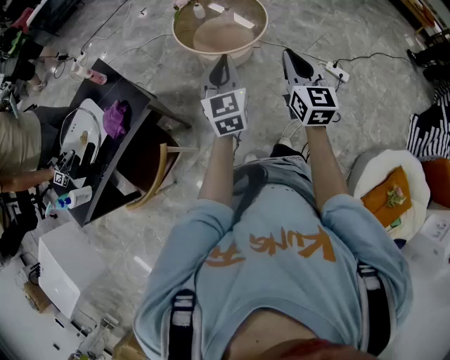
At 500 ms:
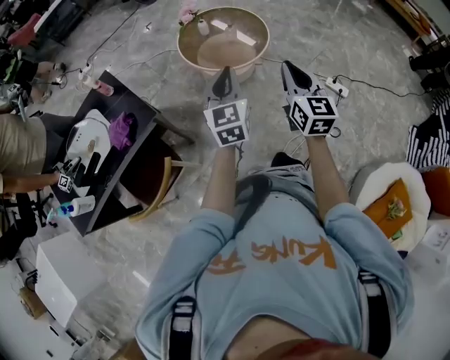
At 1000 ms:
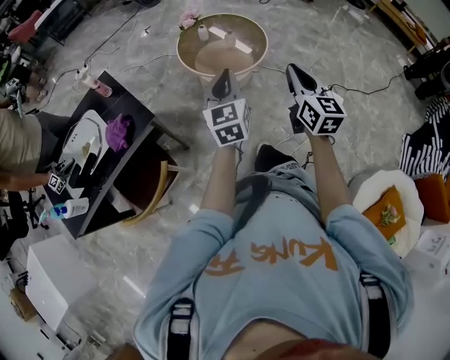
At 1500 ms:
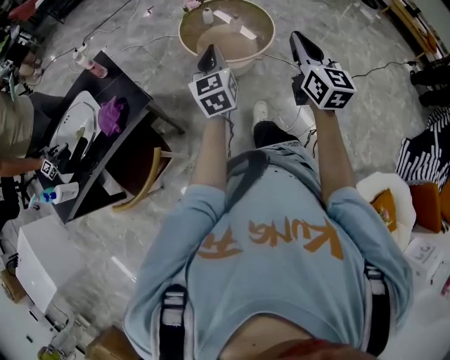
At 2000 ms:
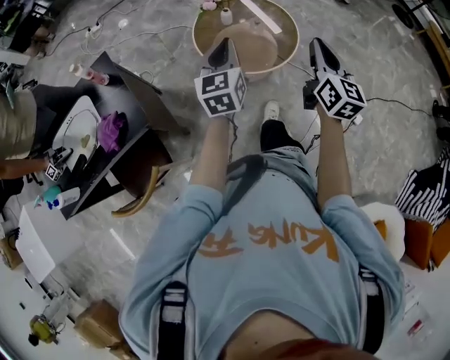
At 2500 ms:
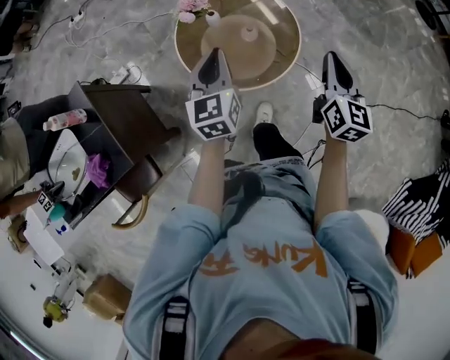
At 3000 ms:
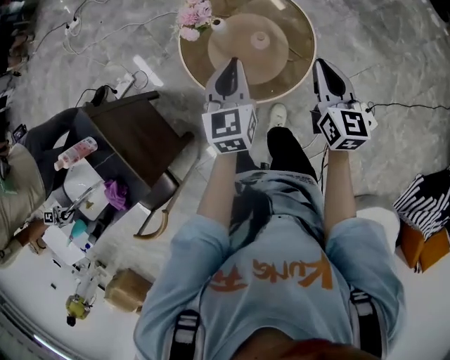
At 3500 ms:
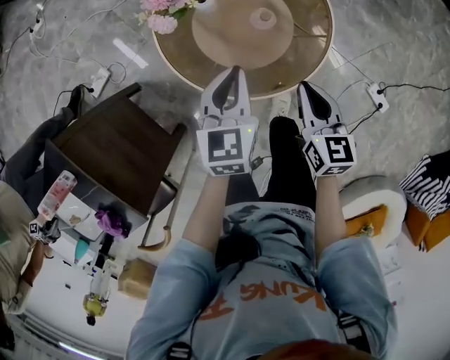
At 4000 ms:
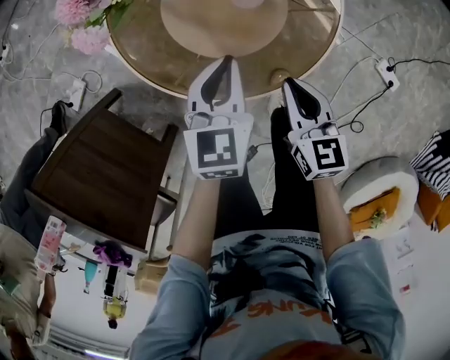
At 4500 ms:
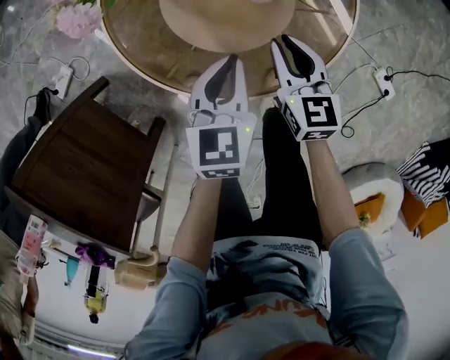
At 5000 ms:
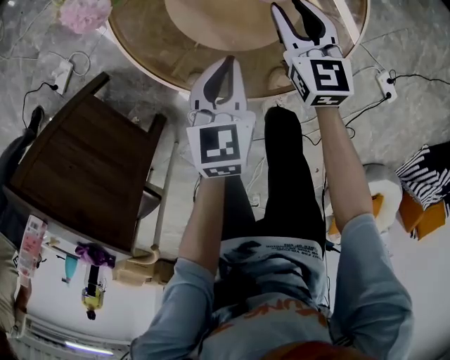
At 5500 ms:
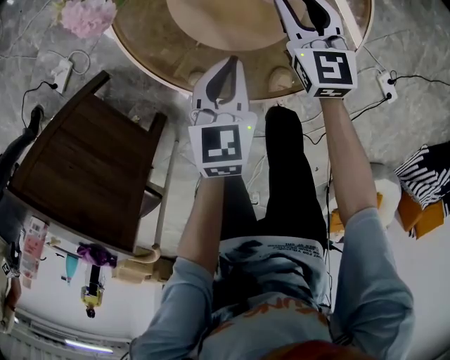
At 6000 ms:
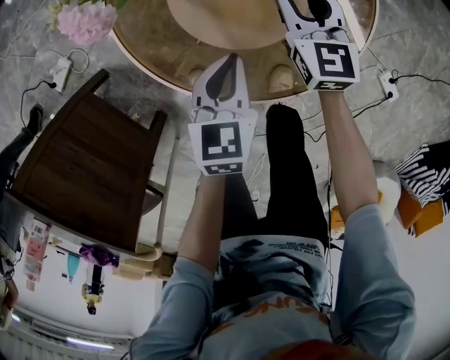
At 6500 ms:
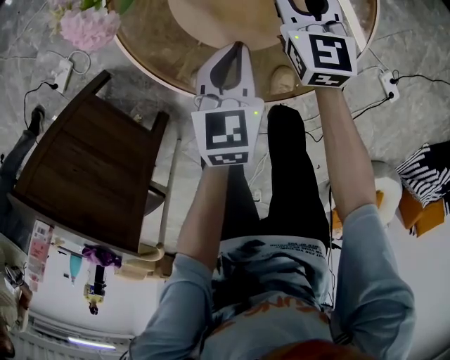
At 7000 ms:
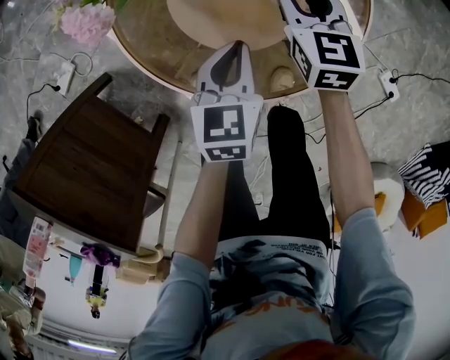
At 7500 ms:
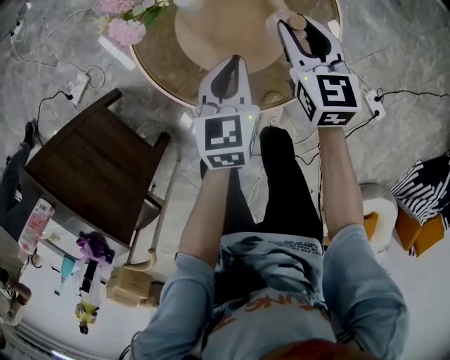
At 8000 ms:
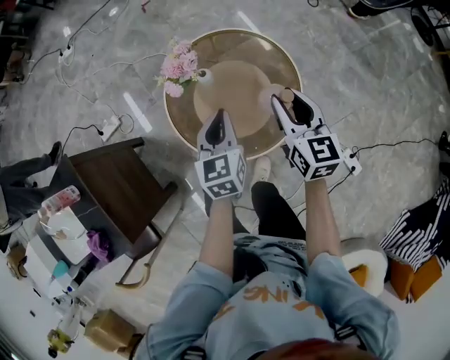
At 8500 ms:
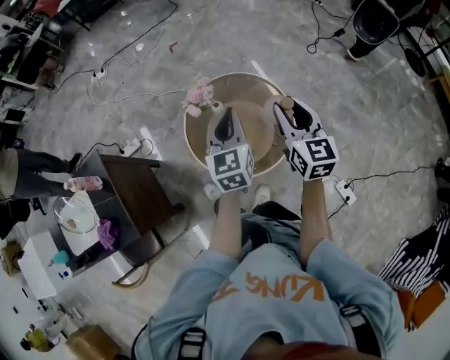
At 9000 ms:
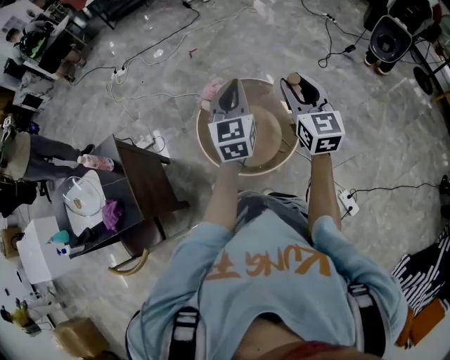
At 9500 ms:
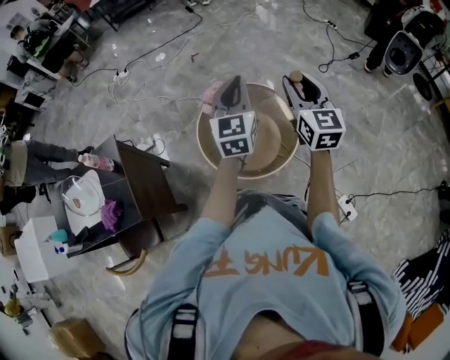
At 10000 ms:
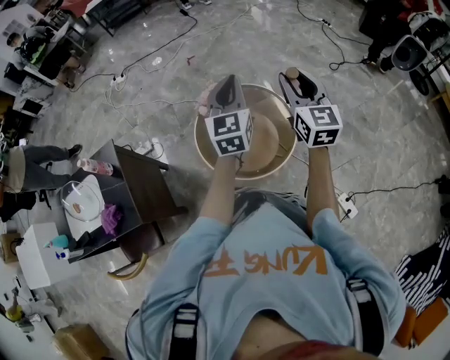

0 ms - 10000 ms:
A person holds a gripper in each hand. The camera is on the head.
0 ms - 2000 ms: The two grippers go roughly 25 cm forward.
2000 ms - 4000 ms: The grippers both shift downward and forward by about 50 cm. The right gripper angles its fingers downward, by approximately 30 degrees; the left gripper changes its angle by roughly 30 degrees.
4000 ms - 6000 ms: The left gripper goes approximately 10 cm downward. Meanwhile the right gripper heads forward, covering roughly 20 cm, rotates about 20 degrees, and opens its fingers.
6000 ms - 8000 ms: The two grippers go roughly 30 cm upward. The left gripper changes its angle by some 20 degrees.
8000 ms - 10000 ms: The grippers both shift upward by about 30 cm. The right gripper rotates approximately 20 degrees. The left gripper turns by some 30 degrees.

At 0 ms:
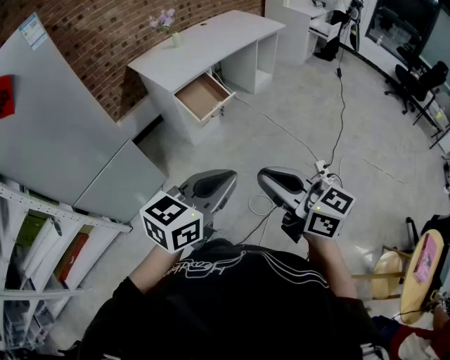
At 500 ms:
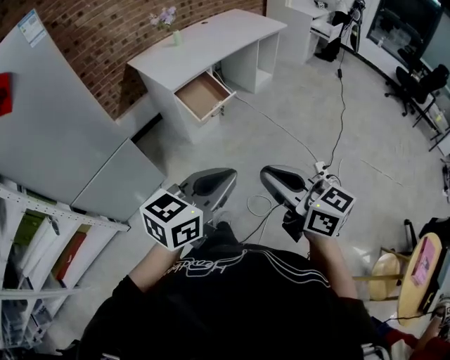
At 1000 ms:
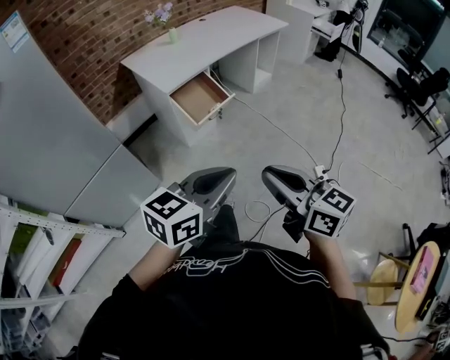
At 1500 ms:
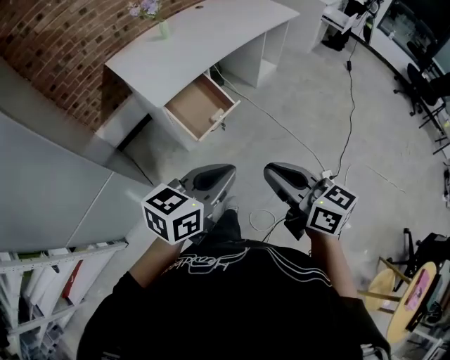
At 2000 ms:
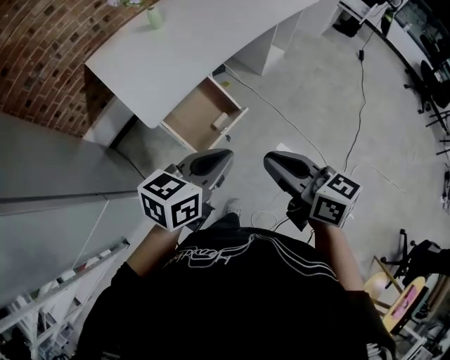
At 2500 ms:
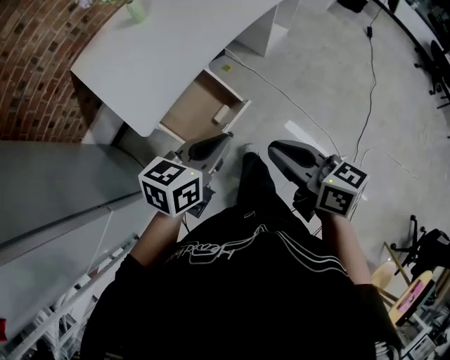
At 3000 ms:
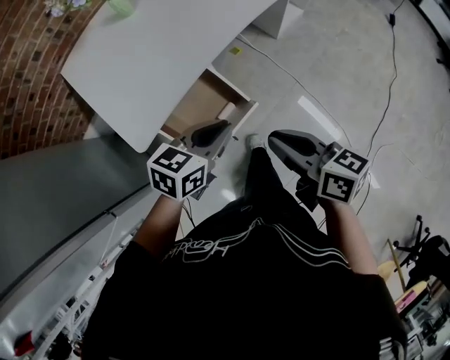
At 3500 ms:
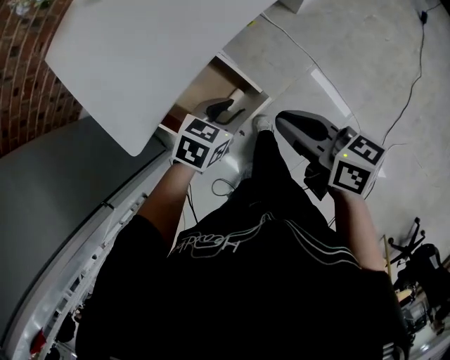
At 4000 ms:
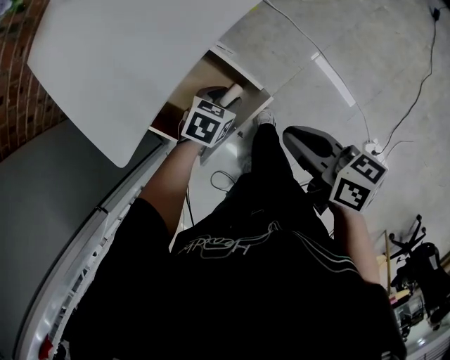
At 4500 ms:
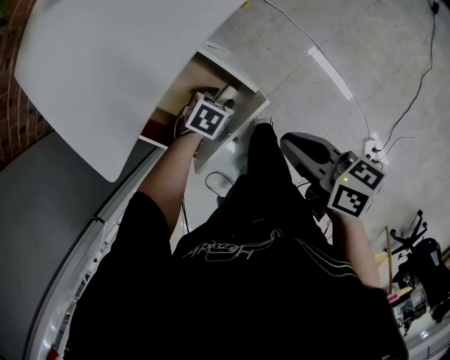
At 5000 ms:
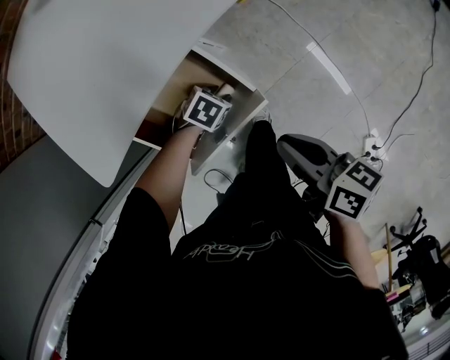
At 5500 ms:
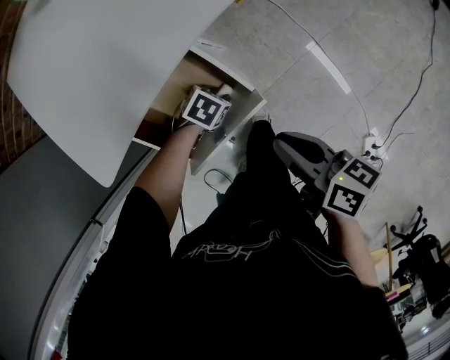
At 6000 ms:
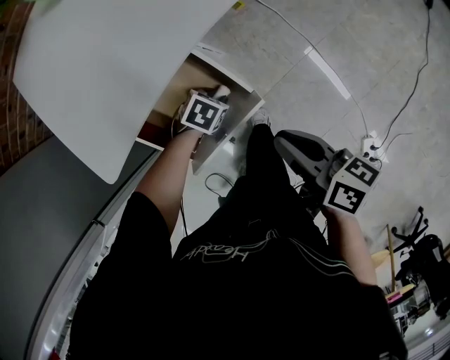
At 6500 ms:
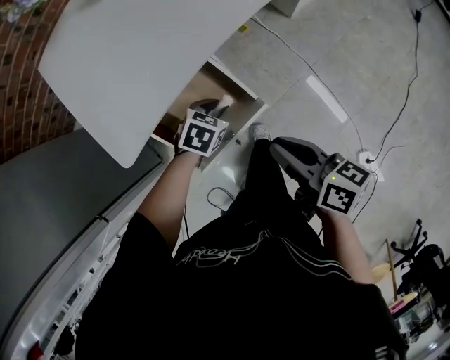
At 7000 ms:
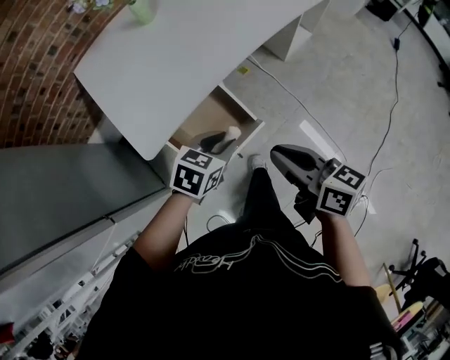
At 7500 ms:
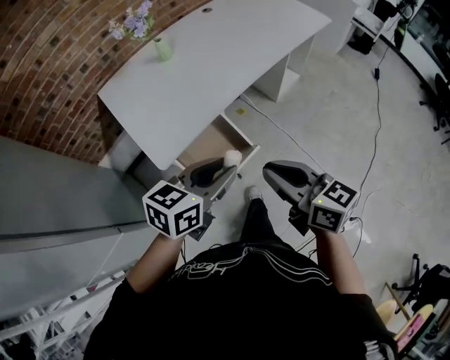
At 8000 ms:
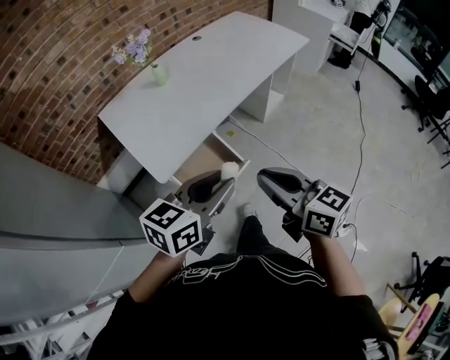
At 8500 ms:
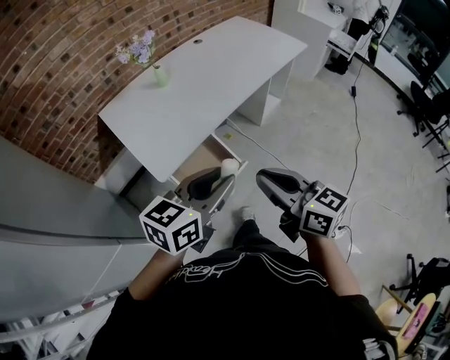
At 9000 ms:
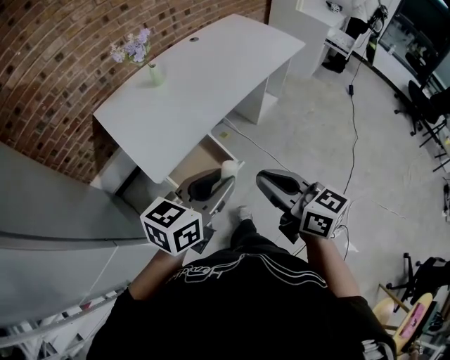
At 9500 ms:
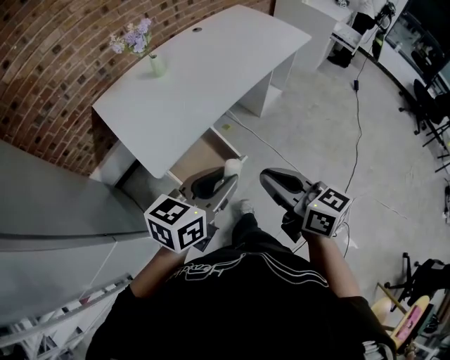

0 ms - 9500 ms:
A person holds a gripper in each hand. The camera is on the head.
0 ms - 2000 ms: The pair of grippers is taken forward, some 60 cm.
2000 ms - 4000 ms: The right gripper travels forward and downward by approximately 40 cm, and changes its angle by about 30 degrees. Meanwhile the left gripper heads downward and forward, covering about 50 cm, points its fingers roughly 40 degrees further downward, and opens.
4000 ms - 5500 ms: The left gripper travels downward by about 10 cm.
5500 ms - 7500 ms: The left gripper heads upward, covering approximately 50 cm, and angles its fingers upward, by roughly 50 degrees. Meanwhile the right gripper moves upward, some 35 cm, and changes its angle by about 40 degrees.
7500 ms - 9500 ms: The left gripper goes some 5 cm upward.

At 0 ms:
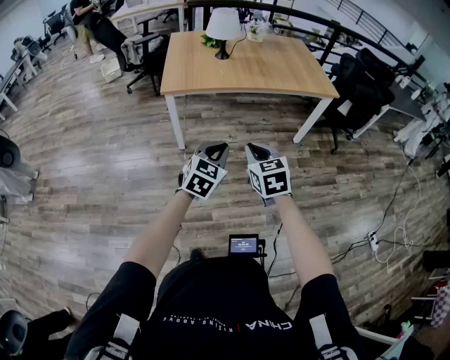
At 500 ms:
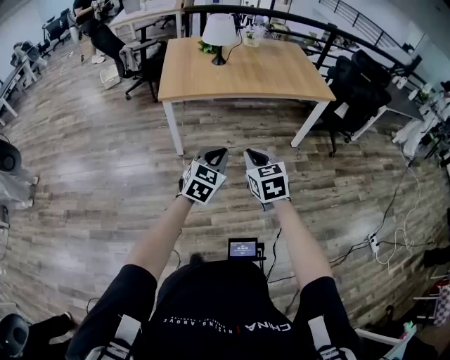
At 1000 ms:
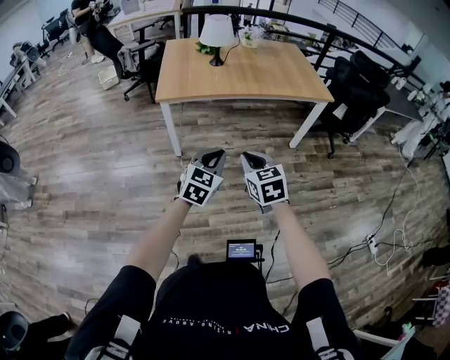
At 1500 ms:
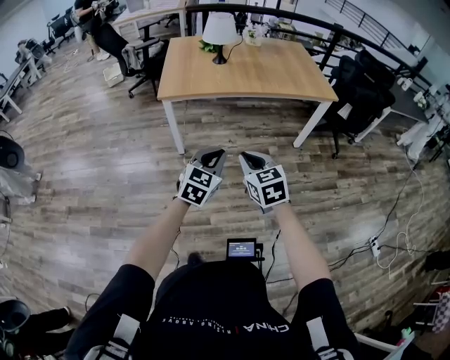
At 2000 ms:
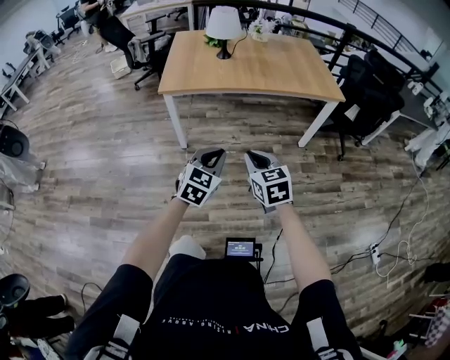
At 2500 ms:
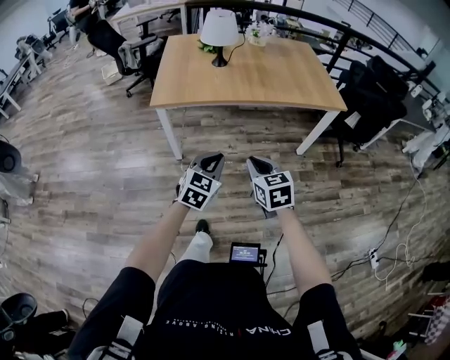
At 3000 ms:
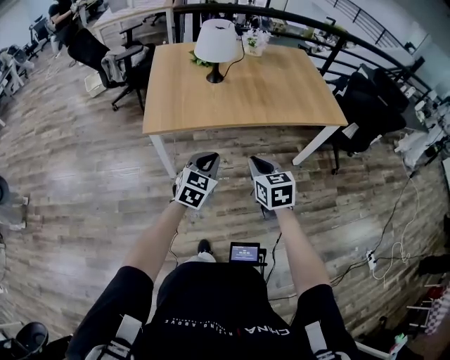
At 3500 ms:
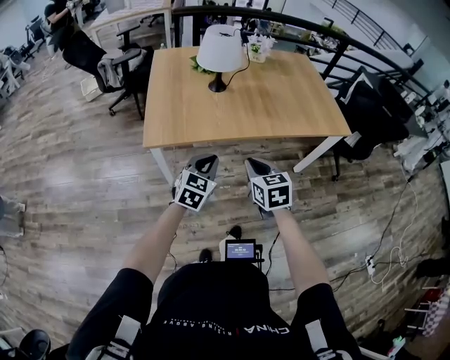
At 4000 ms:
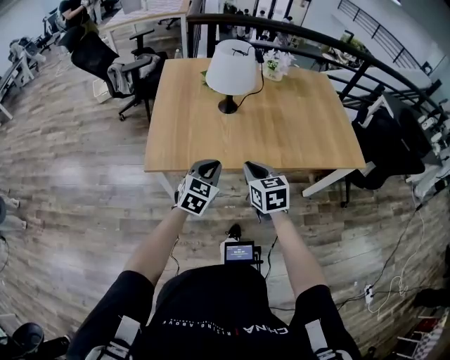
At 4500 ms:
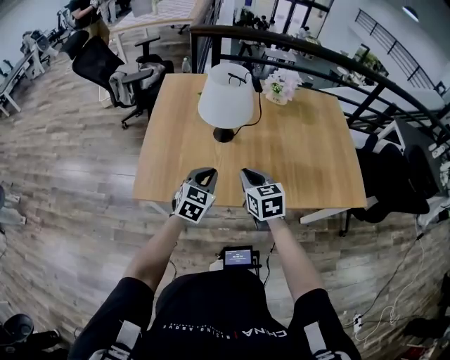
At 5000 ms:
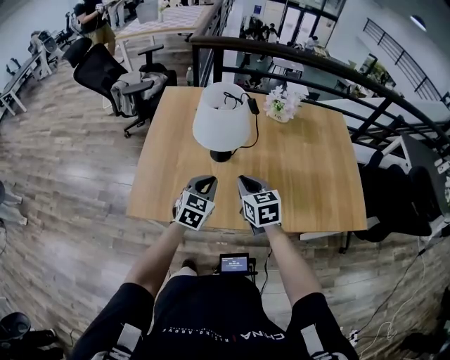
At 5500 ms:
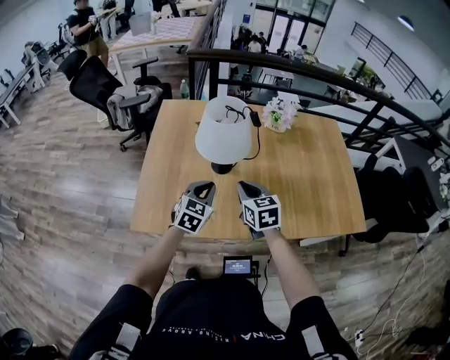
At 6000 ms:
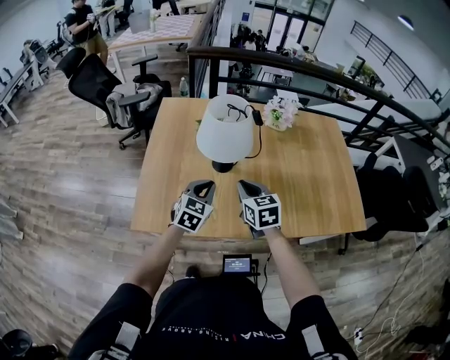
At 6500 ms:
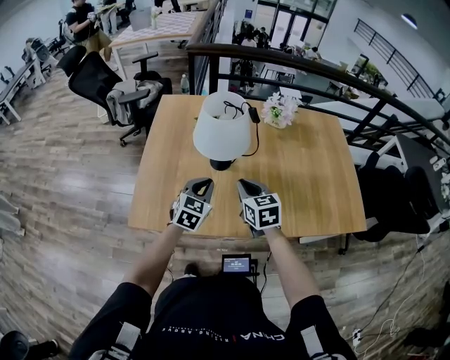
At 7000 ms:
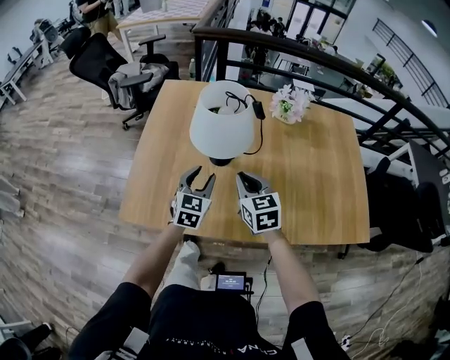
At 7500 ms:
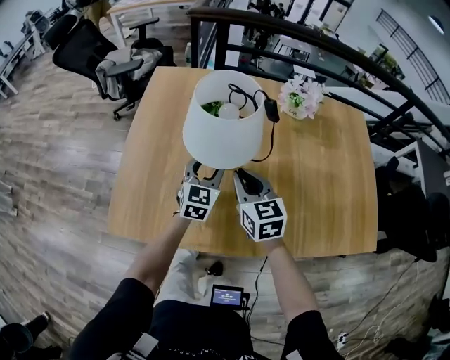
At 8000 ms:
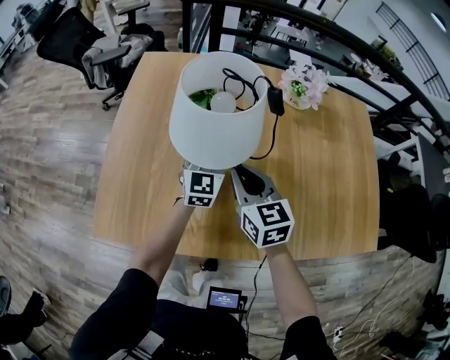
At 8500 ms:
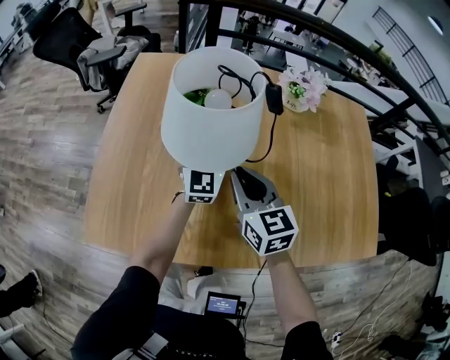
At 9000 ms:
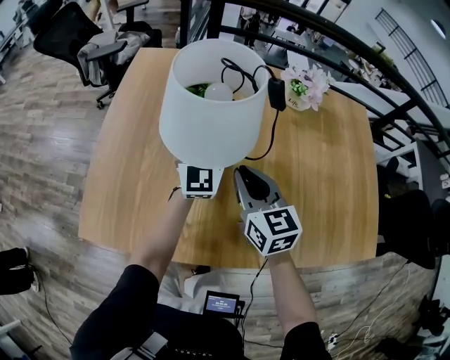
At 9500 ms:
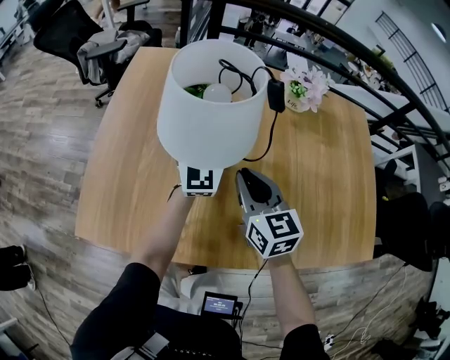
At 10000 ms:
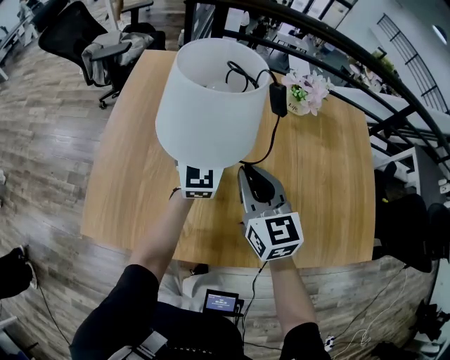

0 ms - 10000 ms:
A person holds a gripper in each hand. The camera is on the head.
0 ms - 2000 ms: Both grippers move to the right, about 5 cm.
2000 ms - 4000 ms: The pair of grippers is taken forward, some 60 cm.
4000 ms - 6000 ms: Both grippers move forward, approximately 25 cm.
6000 ms - 8000 ms: The left gripper shifts approximately 25 cm forward, changes its angle by roughly 30 degrees, and opens its fingers; the right gripper moves forward and downward, some 15 cm.
8000 ms - 10000 ms: The left gripper goes roughly 5 cm upward, and closes.
